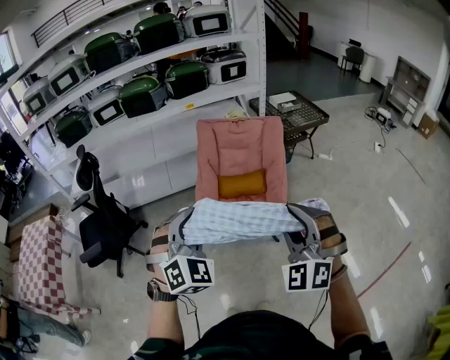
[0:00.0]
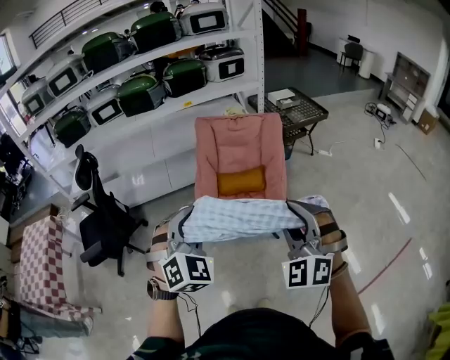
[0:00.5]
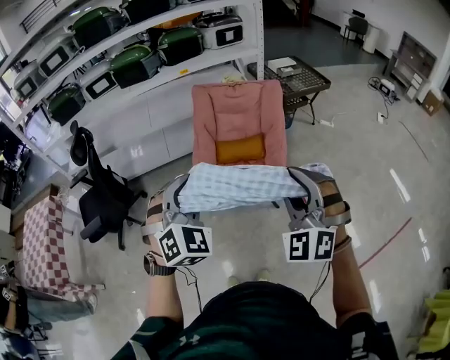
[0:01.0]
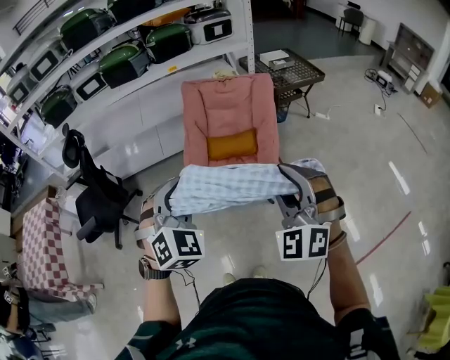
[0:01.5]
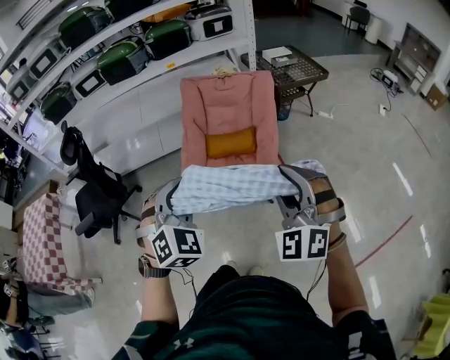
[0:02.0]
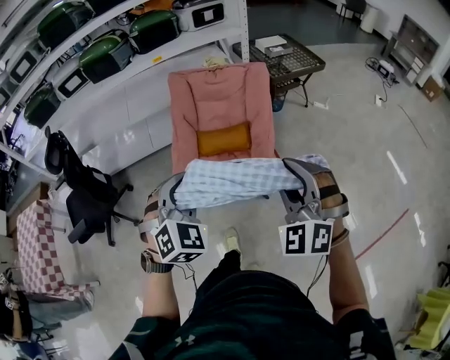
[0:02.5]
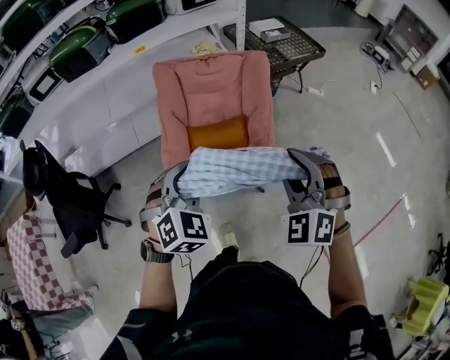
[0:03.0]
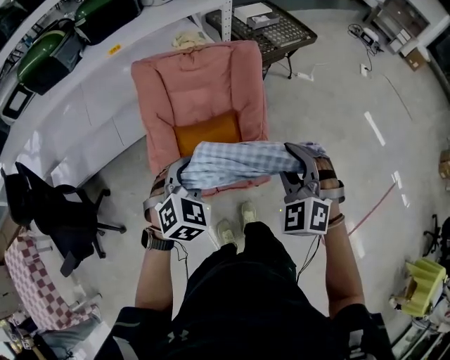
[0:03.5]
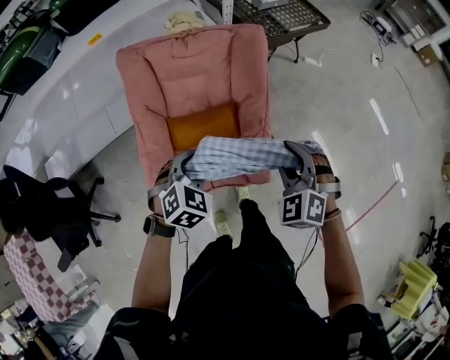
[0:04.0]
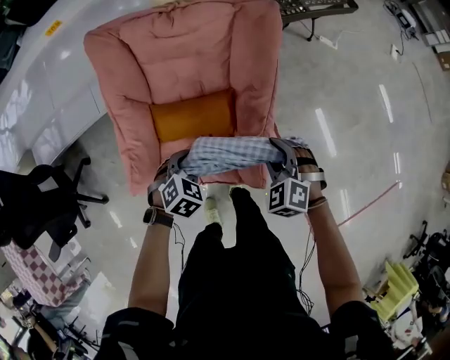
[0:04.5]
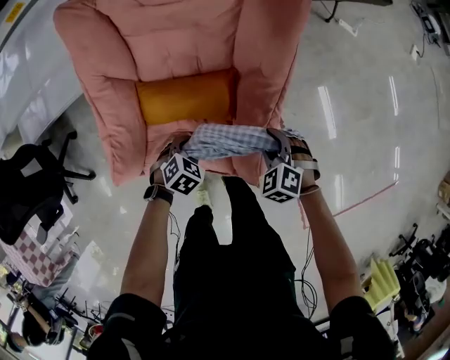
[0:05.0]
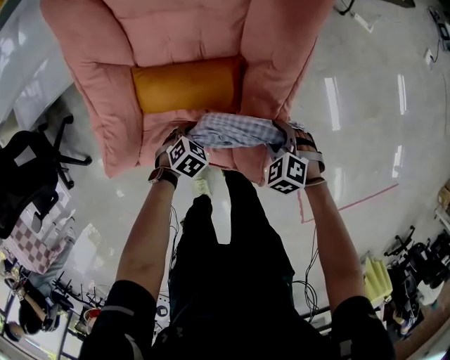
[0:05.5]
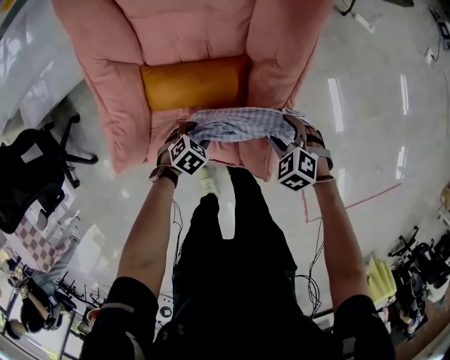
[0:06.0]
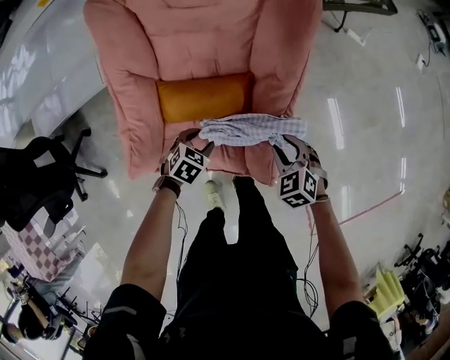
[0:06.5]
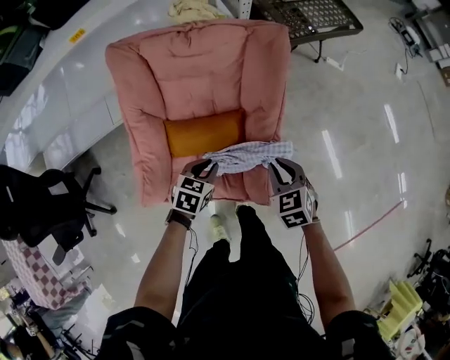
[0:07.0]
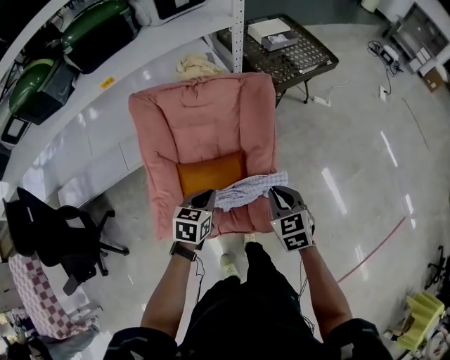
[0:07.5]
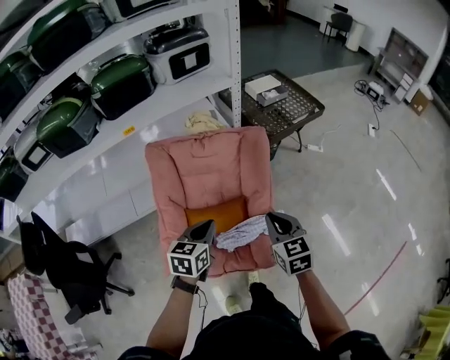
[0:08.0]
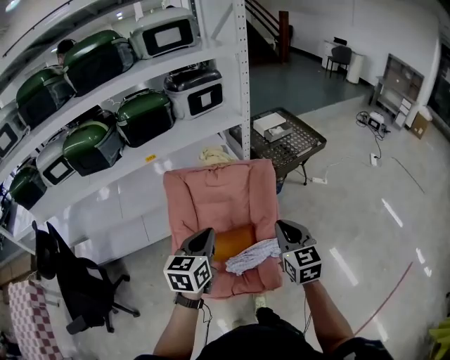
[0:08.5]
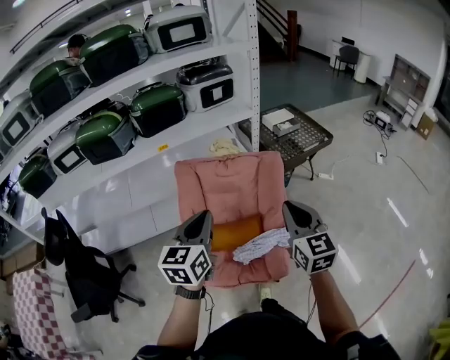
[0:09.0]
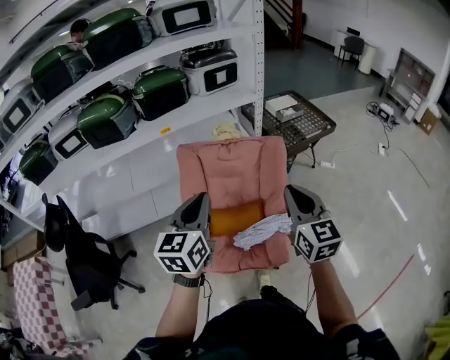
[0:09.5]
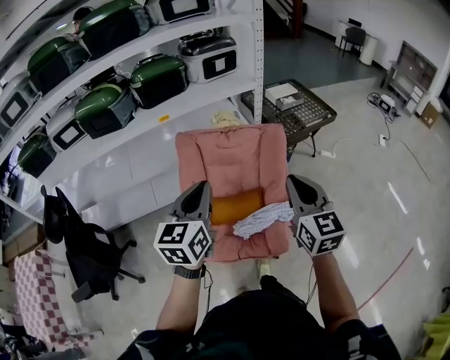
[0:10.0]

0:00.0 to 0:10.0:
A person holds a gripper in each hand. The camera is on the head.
0:00.0 to 0:02.0: The grippers both shift to the right by some 10 cm.
0:02.0 to 0:04.0: The two grippers go some 50 cm forward and downward. The right gripper swivels roughly 30 degrees; the left gripper swivels roughly 30 degrees.
0:04.0 to 0:06.0: The two grippers go approximately 40 cm downward. The left gripper turns by about 40 degrees, and opens; the right gripper points its fingers approximately 30 degrees further downward, and opens.
0:06.0 to 0:08.0: The grippers both shift upward by about 40 cm. The left gripper tilts its fingers some 40 degrees upward, and closes its fingers, while the right gripper tilts its fingers approximately 40 degrees upward, and closes.
0:08.0 to 0:10.0: The grippers both shift upward by some 20 cm. The left gripper changes its angle by about 30 degrees, while the right gripper changes its angle by roughly 20 degrees.

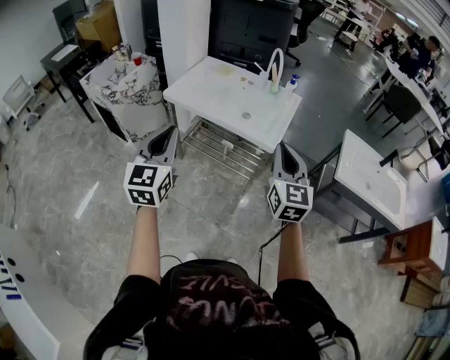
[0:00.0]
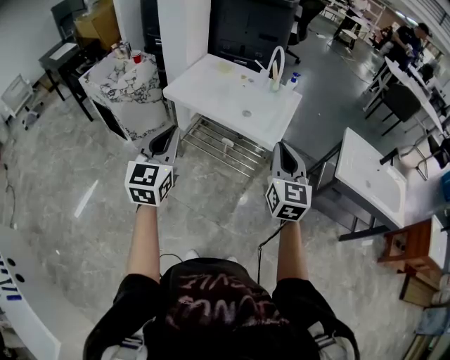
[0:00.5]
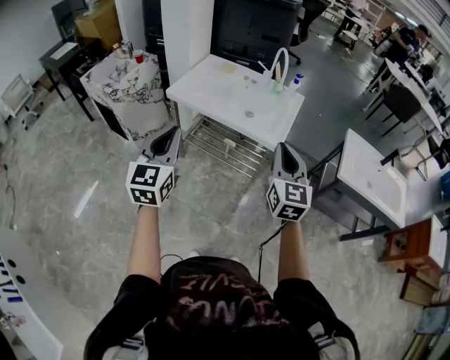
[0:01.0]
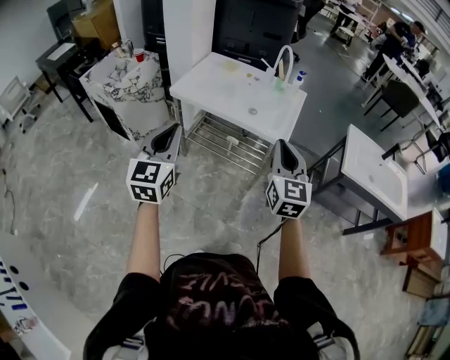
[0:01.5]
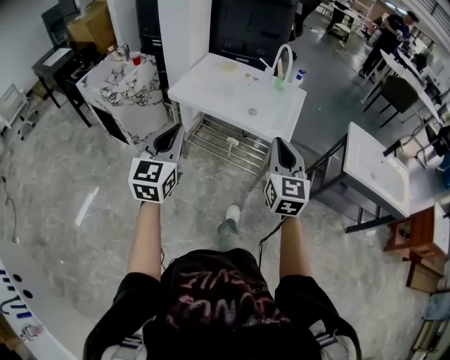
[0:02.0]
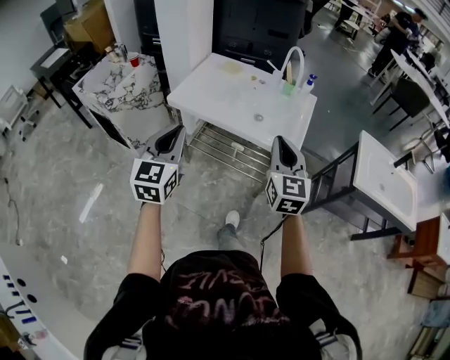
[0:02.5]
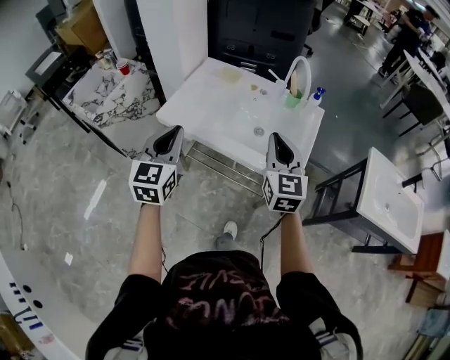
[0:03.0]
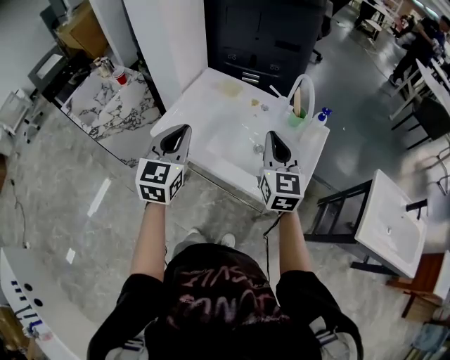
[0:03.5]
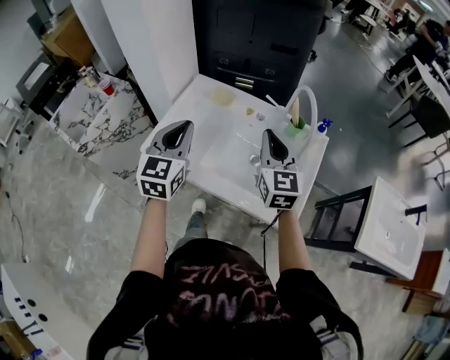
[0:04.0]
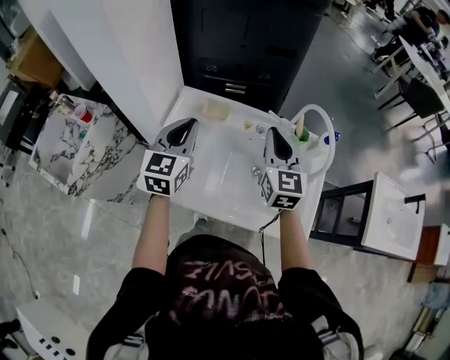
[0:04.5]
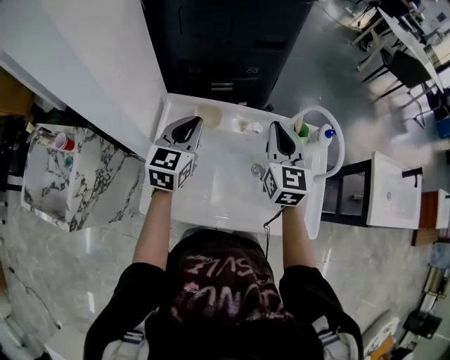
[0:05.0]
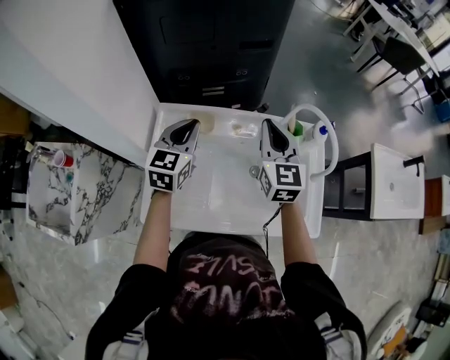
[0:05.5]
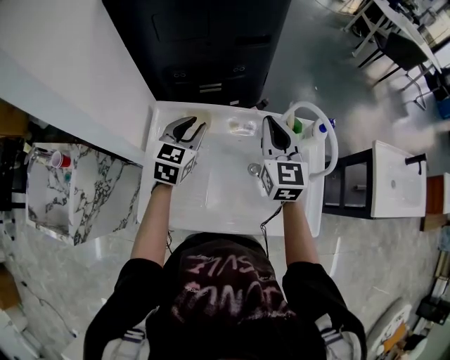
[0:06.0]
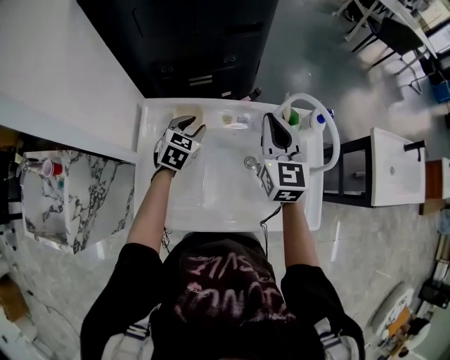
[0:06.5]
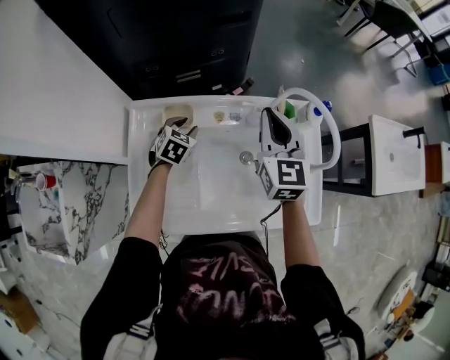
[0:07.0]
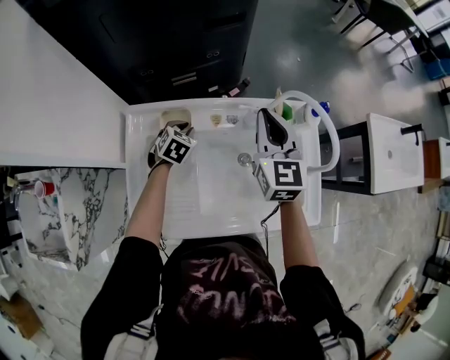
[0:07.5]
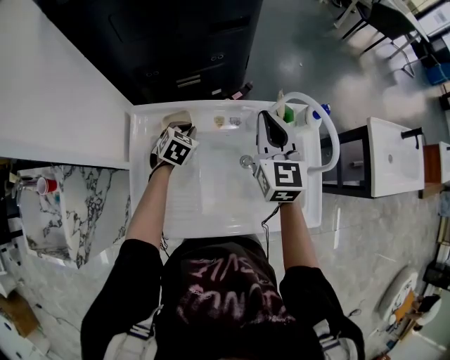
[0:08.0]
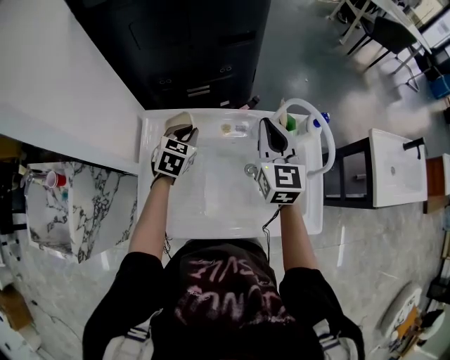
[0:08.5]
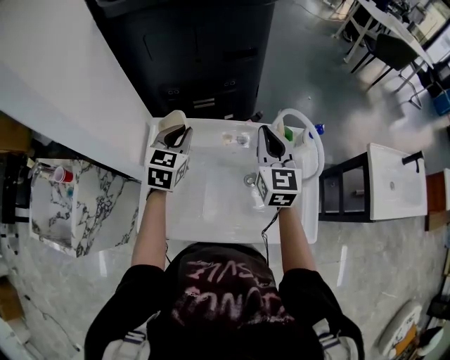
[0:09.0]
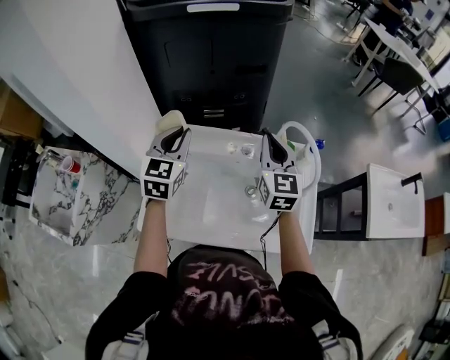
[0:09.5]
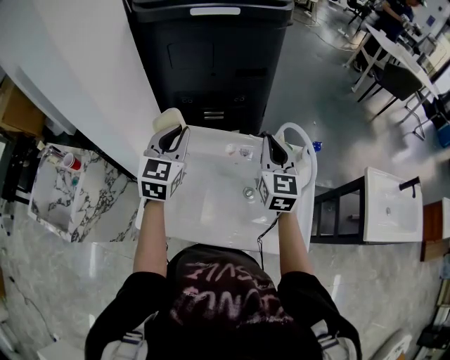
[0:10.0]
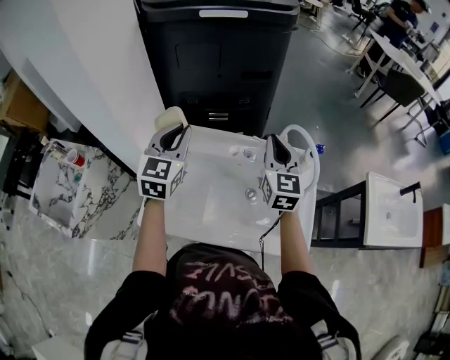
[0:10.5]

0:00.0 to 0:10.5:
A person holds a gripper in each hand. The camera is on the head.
0:00.0 to 0:02.0: The grippers both shift to the left by about 10 cm.
0:02.0 to 0:04.0: Both grippers are carried forward, roughly 50 cm.
0:04.0 to 0:06.5: The left gripper ends up approximately 35 cm from where it was, rotates roughly 50 degrees, and opens up, while the right gripper shifts by about 20 cm, and turns by approximately 20 degrees.
0:06.5 to 0:08.5: The left gripper moves some 10 cm downward and comes back, and closes up.
0:08.5 to 0:10.5: The left gripper moves upward and backward, some 25 cm, and swivels some 30 degrees. The right gripper moves upward, some 5 cm.

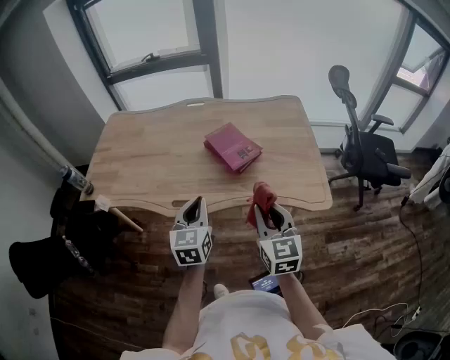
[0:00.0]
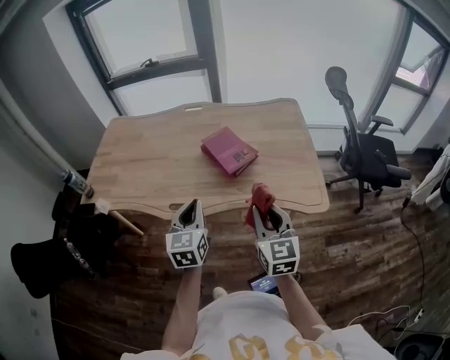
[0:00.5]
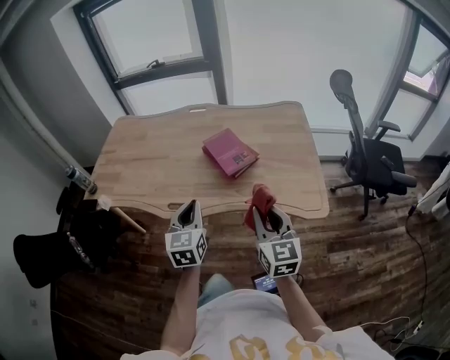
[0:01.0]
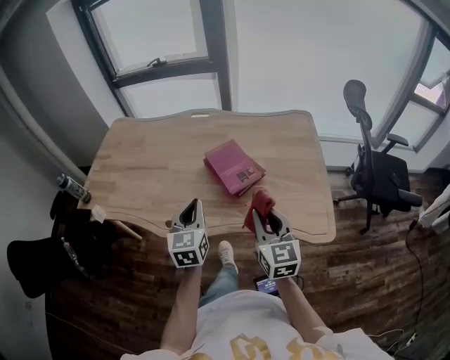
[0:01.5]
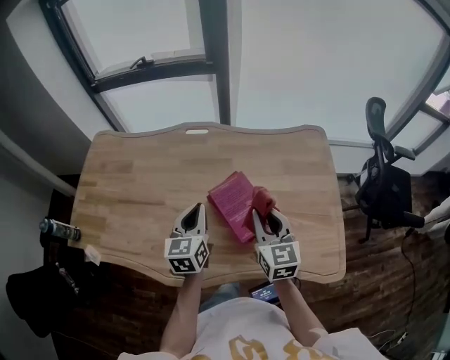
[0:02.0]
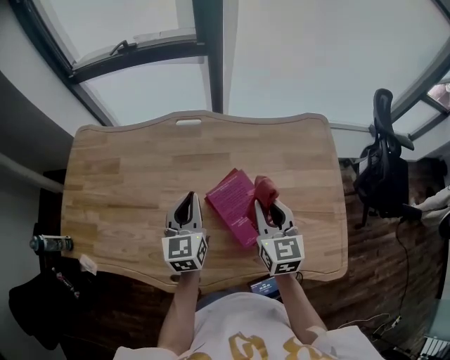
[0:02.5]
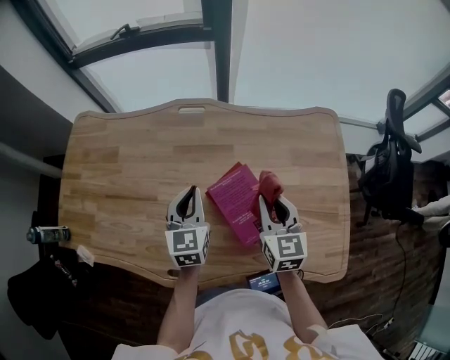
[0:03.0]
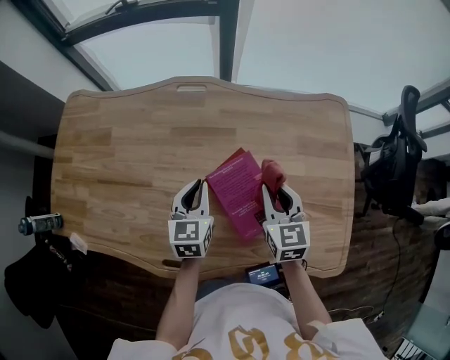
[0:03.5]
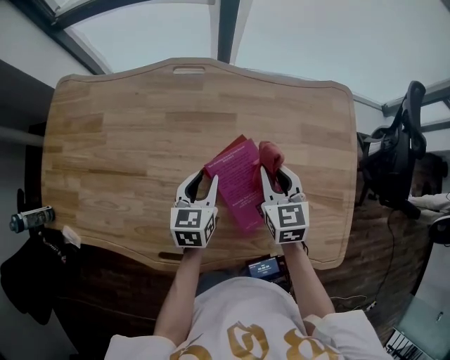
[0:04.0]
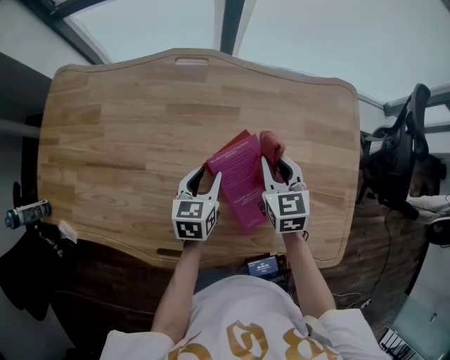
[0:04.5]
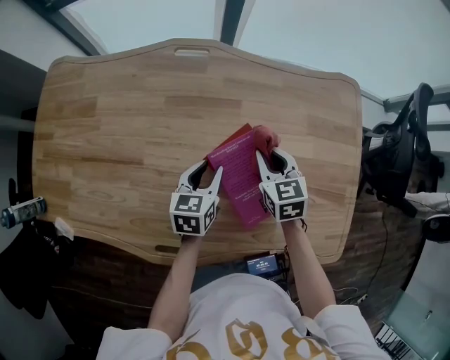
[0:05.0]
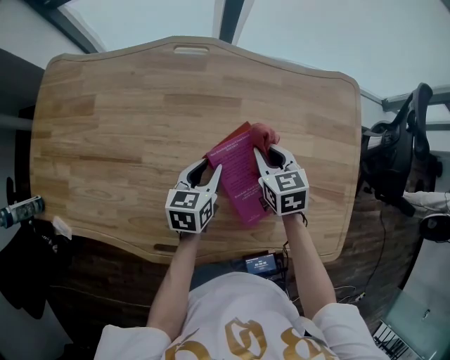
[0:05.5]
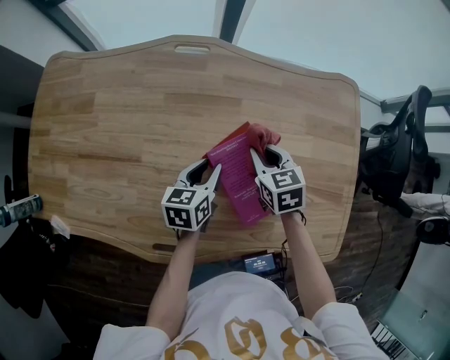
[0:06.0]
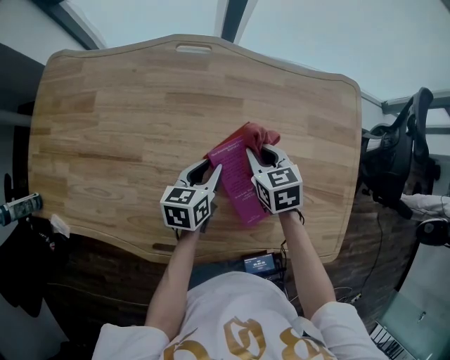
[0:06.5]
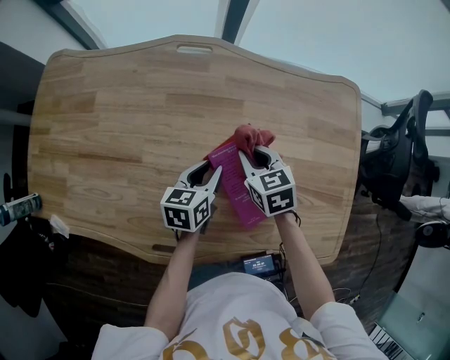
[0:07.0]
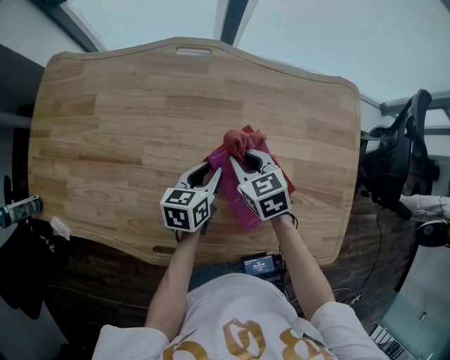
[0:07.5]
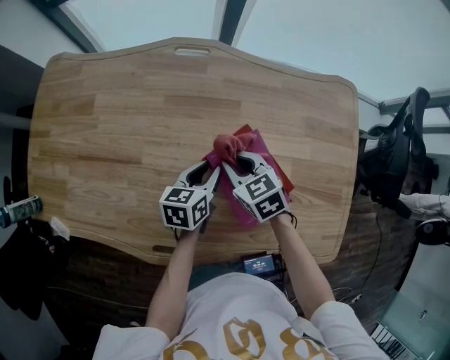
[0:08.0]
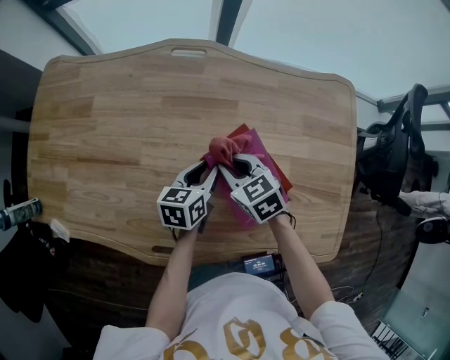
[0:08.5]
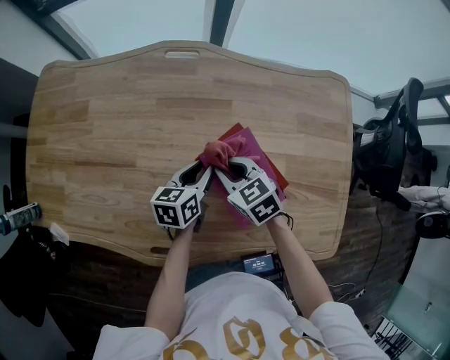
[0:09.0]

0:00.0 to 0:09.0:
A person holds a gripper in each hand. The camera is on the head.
0:00.0 to 0:02.0: Both grippers move forward, roughly 35 cm.
0:02.0 to 0:04.5: The left gripper goes approximately 20 cm downward and forward, swivels roughly 20 degrees, and opens. Meanwhile the right gripper heads forward and downward, covering roughly 20 cm, and swivels approximately 20 degrees.
0:04.5 to 0:07.0: The right gripper travels to the left and downward by about 10 cm.
0:07.0 to 0:09.0: The right gripper ends up approximately 5 cm from where it was.
